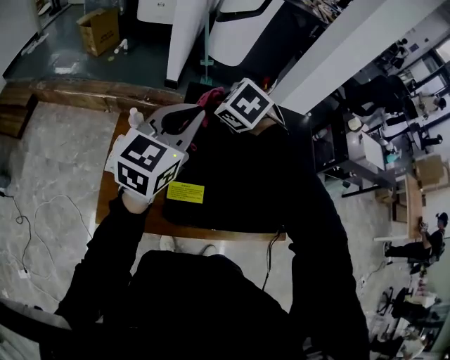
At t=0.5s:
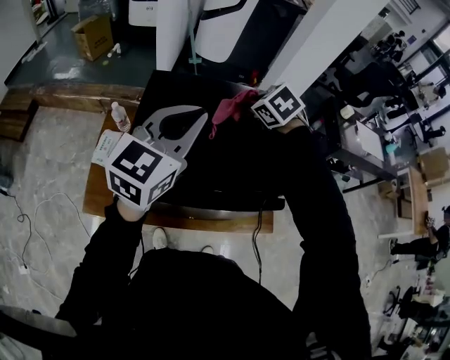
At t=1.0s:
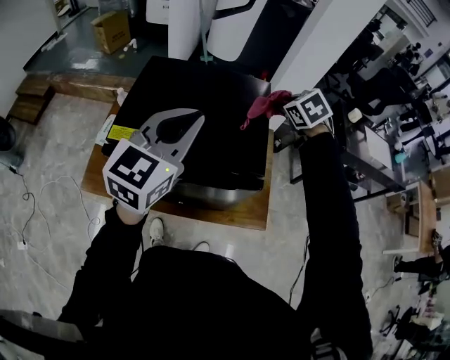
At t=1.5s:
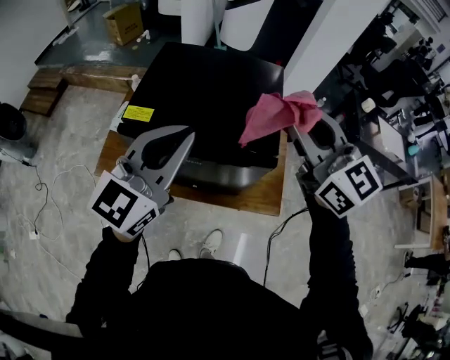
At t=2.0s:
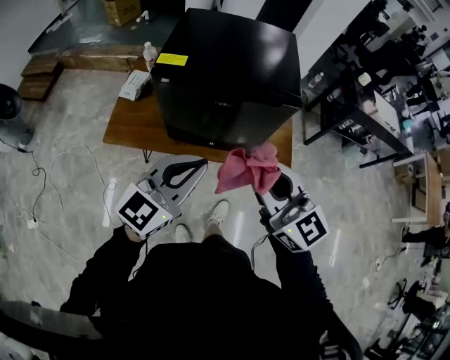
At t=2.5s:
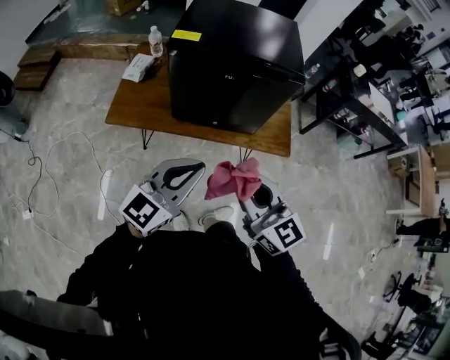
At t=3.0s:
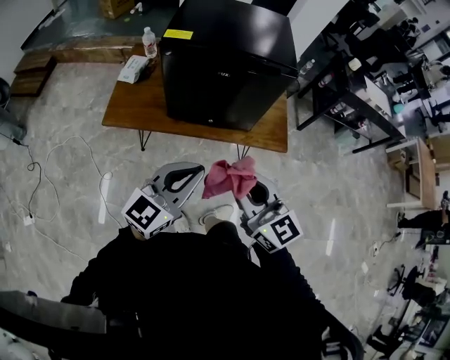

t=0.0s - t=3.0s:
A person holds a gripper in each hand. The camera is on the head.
t=0.0s - t=1.5s: The left gripper shifts approximately 35 cm backward and to the right, while the right gripper goes about 50 cm to the right, backward and upward, and tilts its fingers some 60 degrees upward.
t=1.5s - t=3.0s: Both grippers move backward and downward, approximately 40 cm.

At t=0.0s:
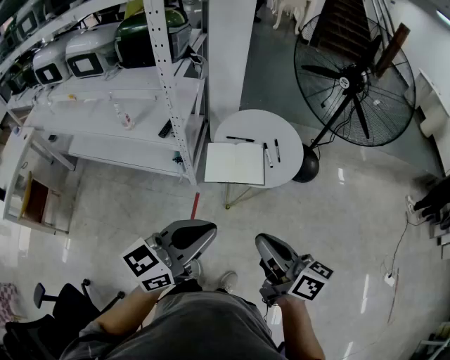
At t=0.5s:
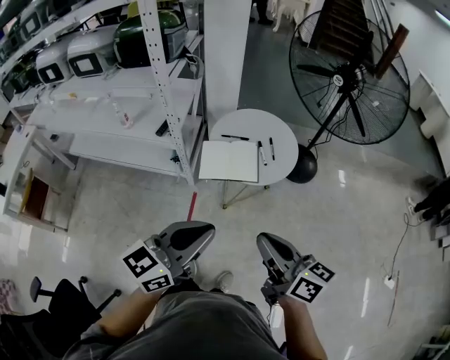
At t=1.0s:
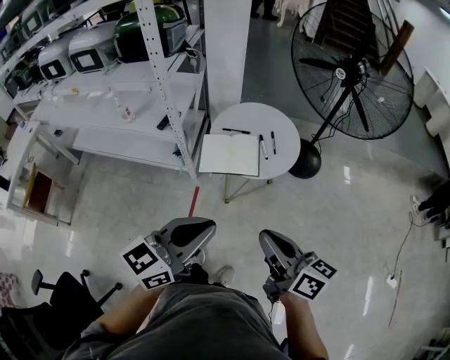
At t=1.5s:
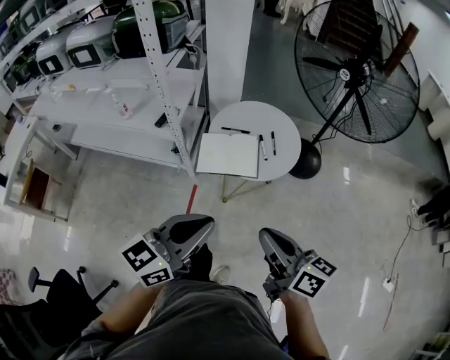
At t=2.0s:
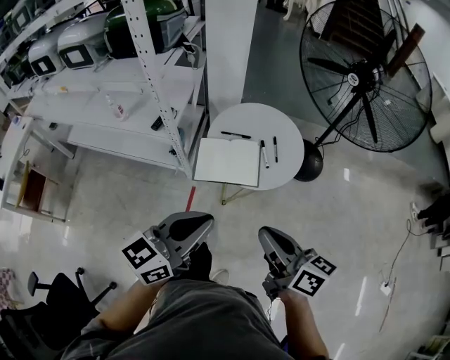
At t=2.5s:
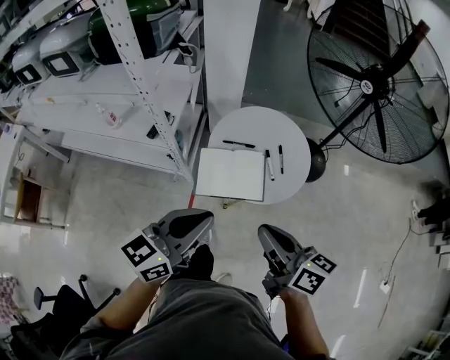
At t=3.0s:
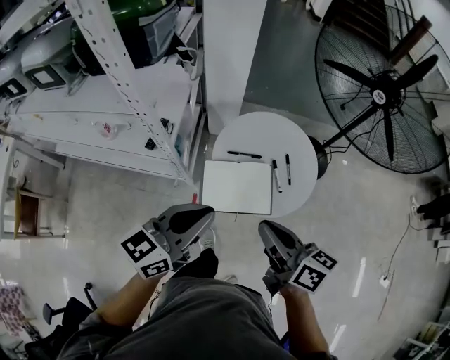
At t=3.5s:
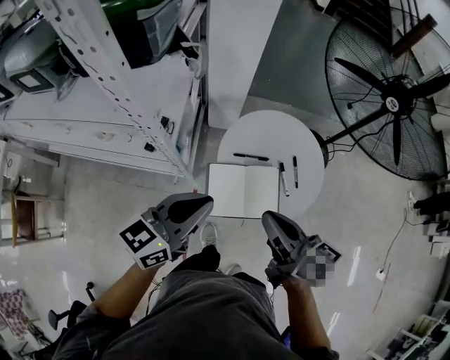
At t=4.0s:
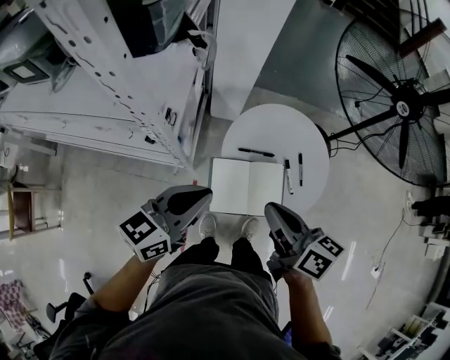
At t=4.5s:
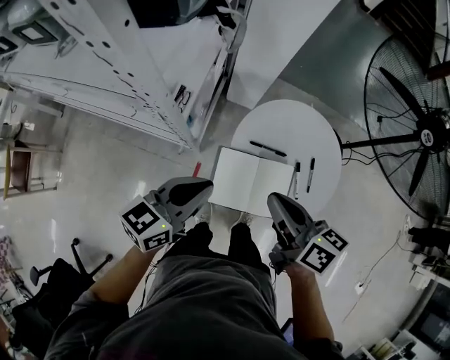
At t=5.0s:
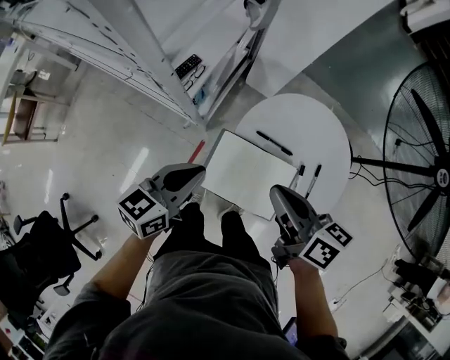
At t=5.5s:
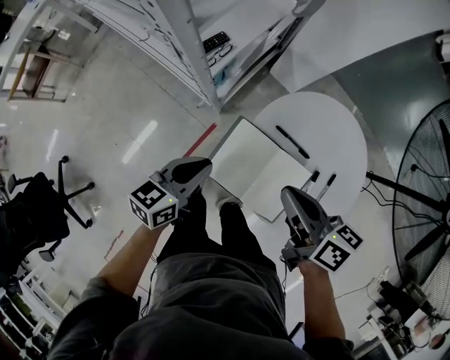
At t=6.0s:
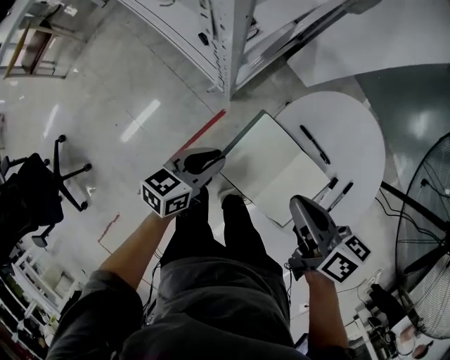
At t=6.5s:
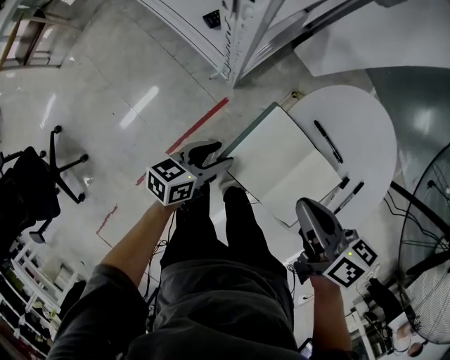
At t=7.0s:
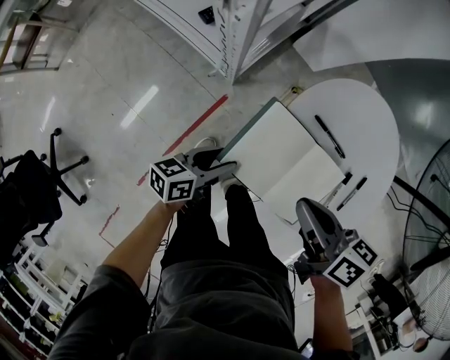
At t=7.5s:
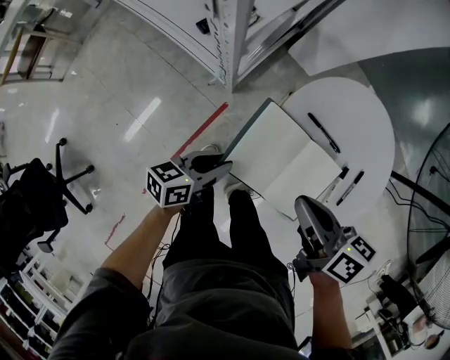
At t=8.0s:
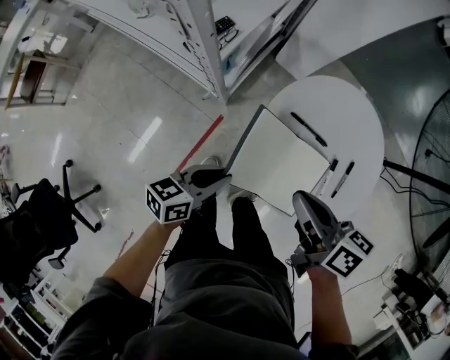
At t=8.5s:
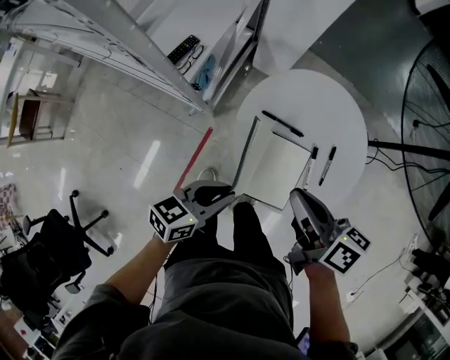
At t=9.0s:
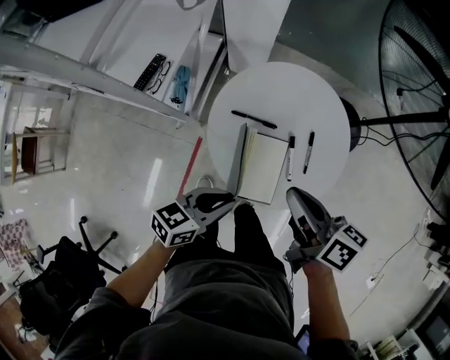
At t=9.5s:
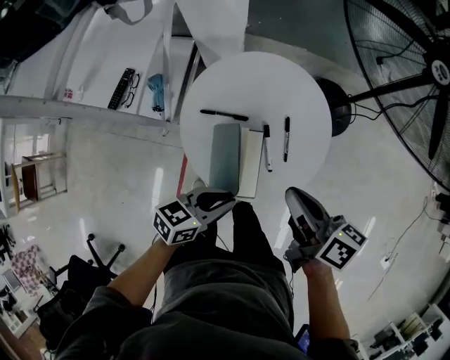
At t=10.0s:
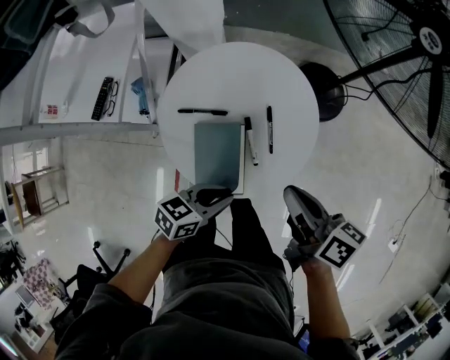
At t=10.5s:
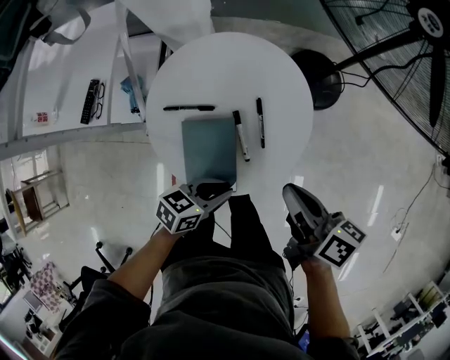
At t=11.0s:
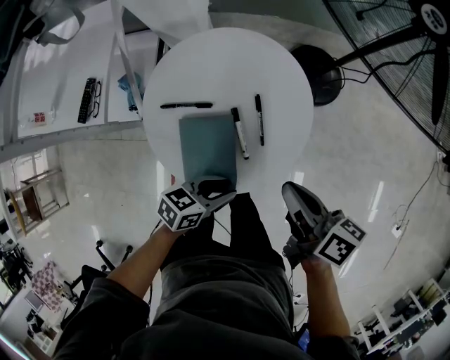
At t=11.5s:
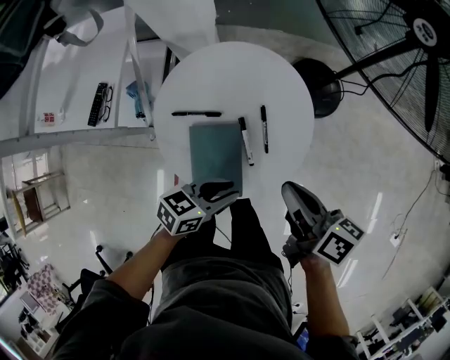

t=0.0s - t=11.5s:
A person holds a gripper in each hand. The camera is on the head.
t=0.0s - t=2.0s: The left gripper shifts some 5 cm forward, while the right gripper travels forward and to the right by approximately 10 cm.
t=2.0s - t=4.0s: The grippers both shift forward and to the left by roughly 30 cm.
t=4.0s - t=6.0s: The right gripper travels downward by about 15 cm, and swivels about 40 degrees; the left gripper shifts approximately 30 cm downward, and changes its angle by some 40 degrees.
t=6.0s - t=7.5s: The left gripper opens, then closes once more.
t=7.5s - t=9.5s: The right gripper moves roughly 20 cm, and changes its angle by roughly 30 degrees. Meanwhile the left gripper moves some 25 cm, and changes its angle by approximately 40 degrees.
t=9.5s - t=11.5s: Both grippers travel together to the right, about 5 cm.

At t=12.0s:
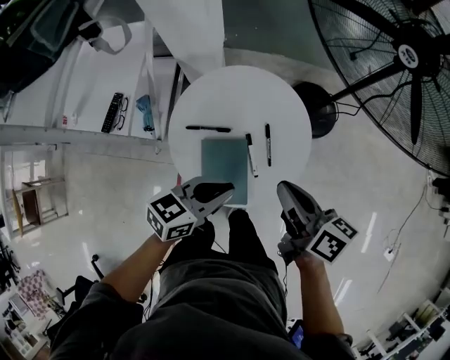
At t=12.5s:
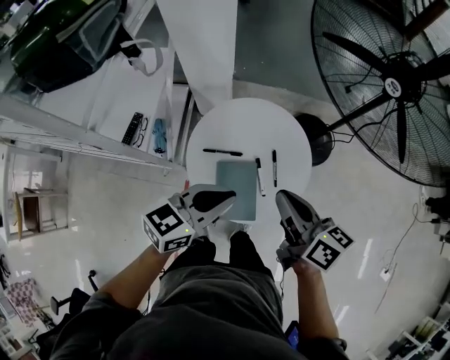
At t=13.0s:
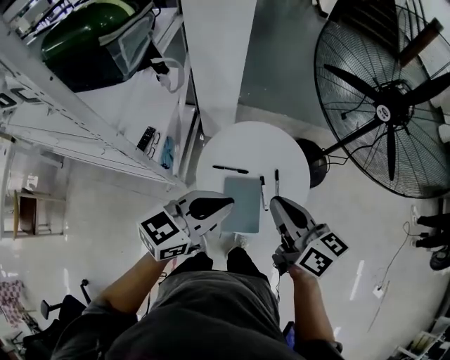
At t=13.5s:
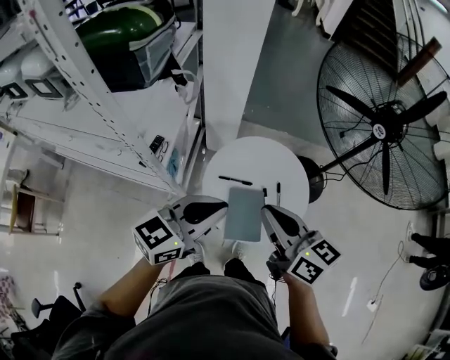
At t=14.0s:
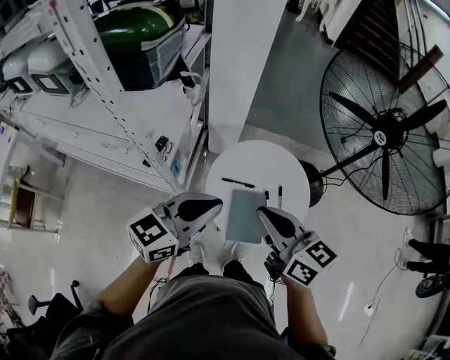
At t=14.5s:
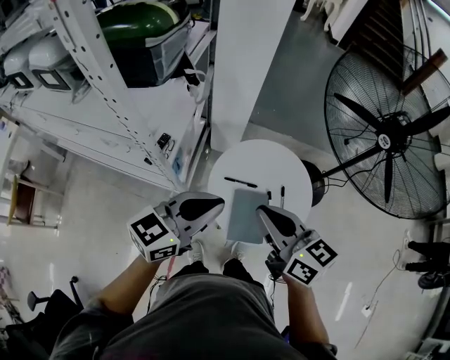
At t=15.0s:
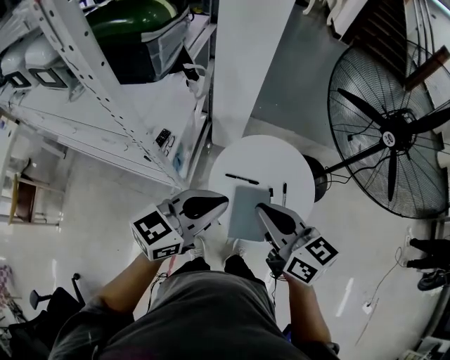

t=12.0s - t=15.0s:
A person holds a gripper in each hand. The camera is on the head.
t=12.0s - t=13.5s: The grippers both shift upward and to the left by roughly 25 cm. The left gripper rotates some 20 degrees. The right gripper changes its angle by approximately 30 degrees.
t=13.5s - t=15.0s: The grippers move only a little.

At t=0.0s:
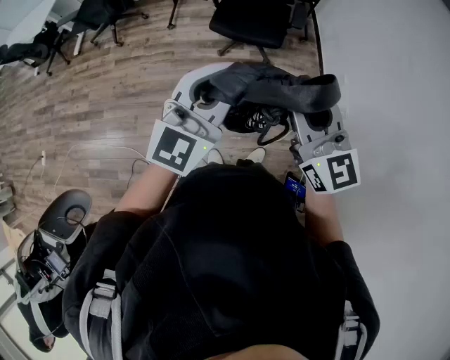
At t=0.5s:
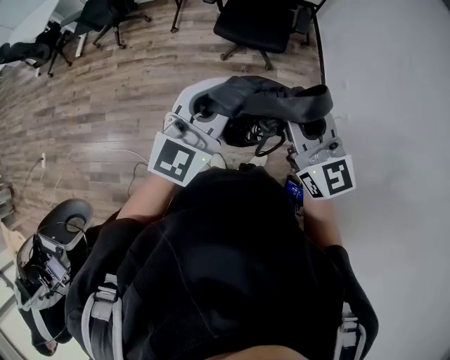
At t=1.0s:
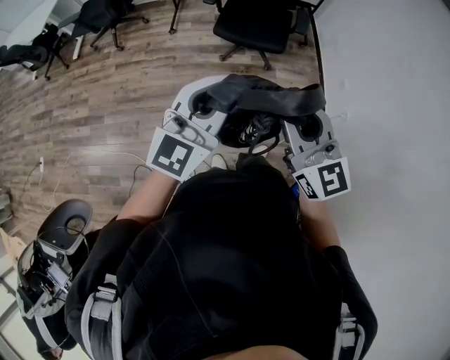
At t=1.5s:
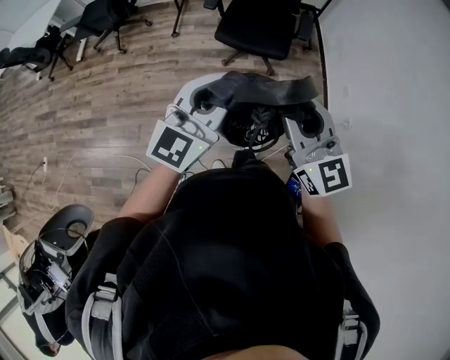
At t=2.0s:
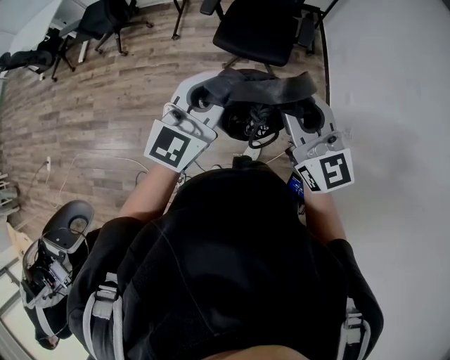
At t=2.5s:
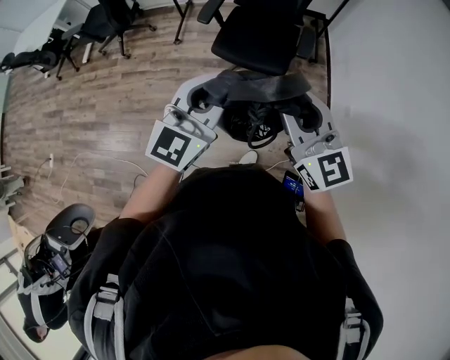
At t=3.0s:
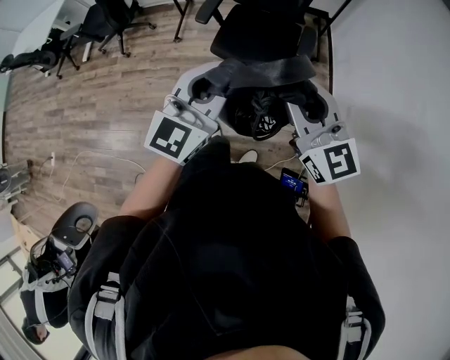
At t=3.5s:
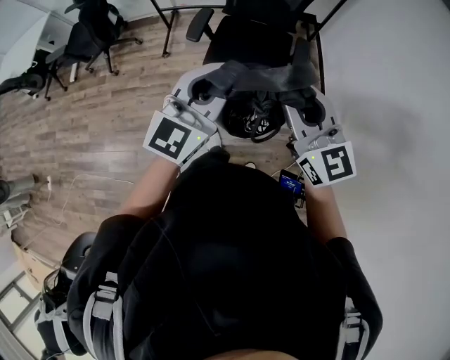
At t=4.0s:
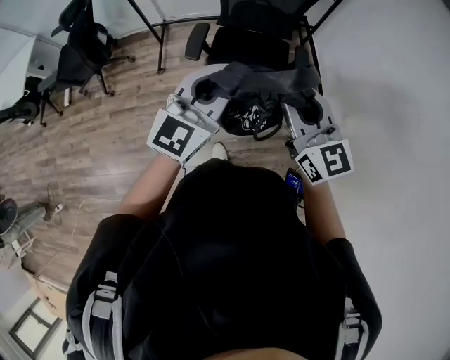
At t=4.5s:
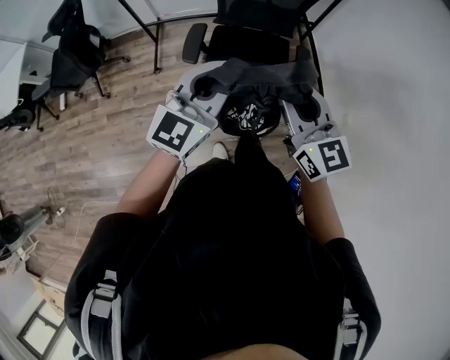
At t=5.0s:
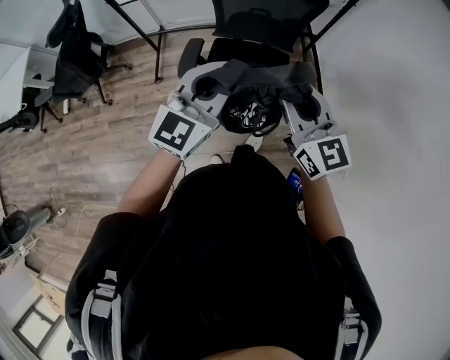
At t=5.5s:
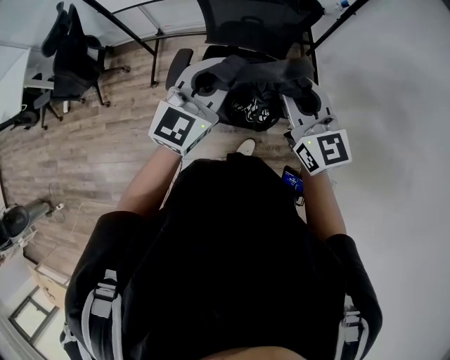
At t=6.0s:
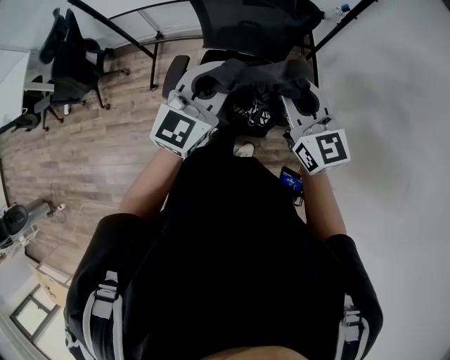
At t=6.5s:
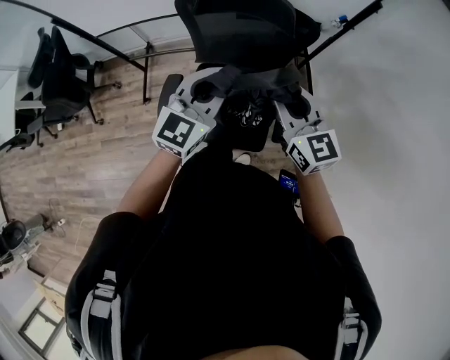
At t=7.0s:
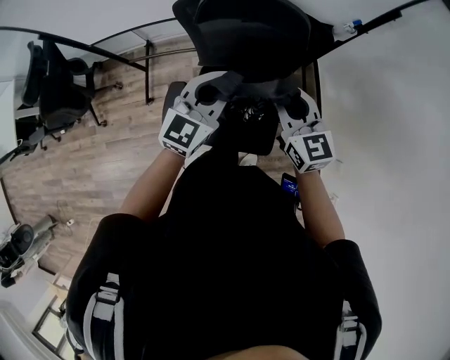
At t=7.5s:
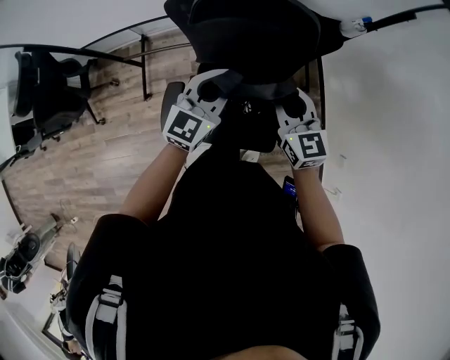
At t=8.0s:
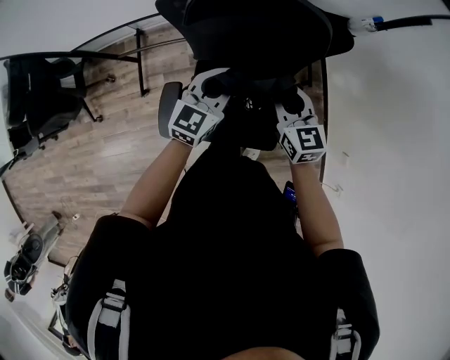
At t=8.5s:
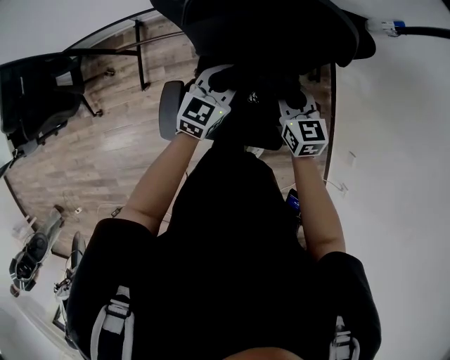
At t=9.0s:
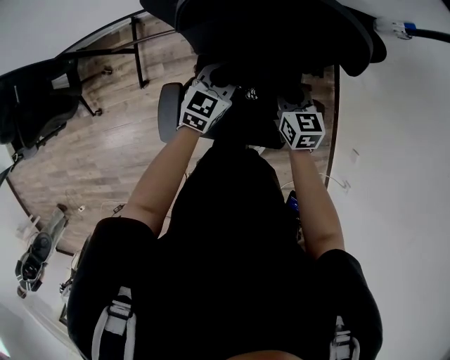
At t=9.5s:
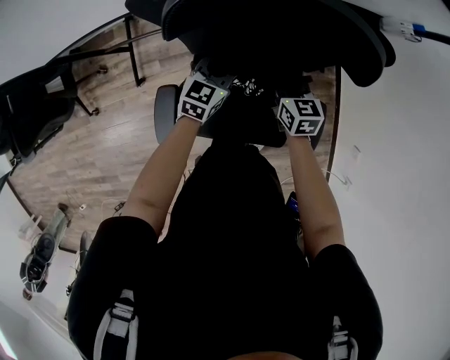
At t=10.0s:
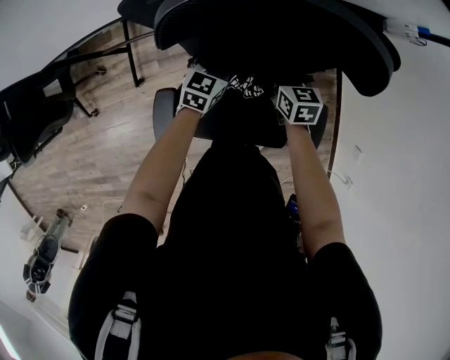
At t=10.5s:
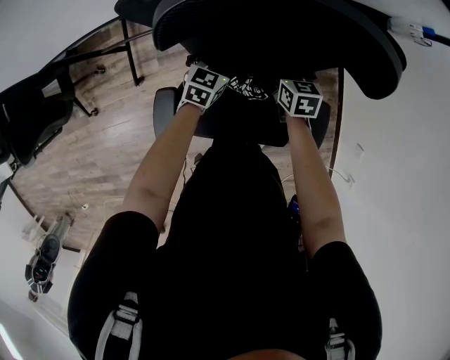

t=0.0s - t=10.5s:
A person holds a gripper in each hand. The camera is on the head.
t=0.0s - t=2.0s: The grippers both shift forward by approximately 10 cm.
t=2.0s - t=4.0s: The grippers both shift forward by roughly 30 cm.
t=4.0s - t=6.5s: The pair of grippers is taken forward, approximately 40 cm.
t=6.5s - t=8.5s: The two grippers go roughly 35 cm downward and forward. The left gripper swivels about 20 degrees. Meanwhile the right gripper swivels some 20 degrees.
t=8.5s - t=10.5s: Both grippers move downward and forward, approximately 20 cm. The right gripper rotates about 20 degrees, and opens its fingers.
